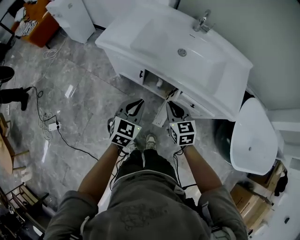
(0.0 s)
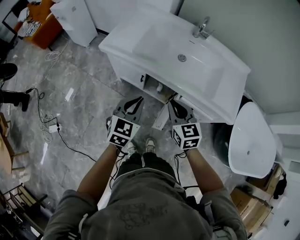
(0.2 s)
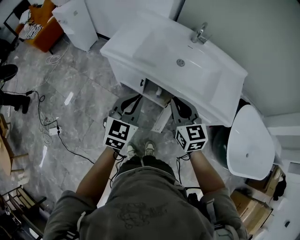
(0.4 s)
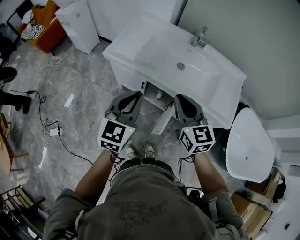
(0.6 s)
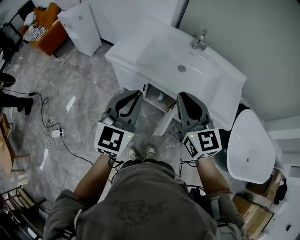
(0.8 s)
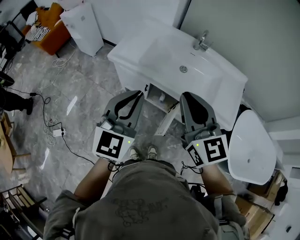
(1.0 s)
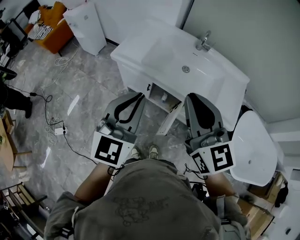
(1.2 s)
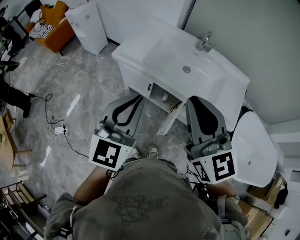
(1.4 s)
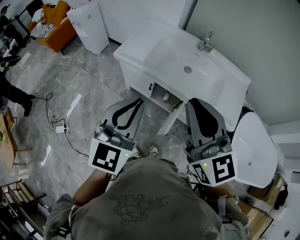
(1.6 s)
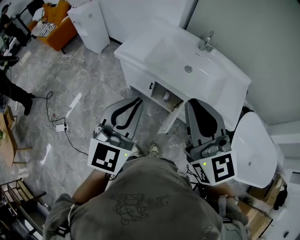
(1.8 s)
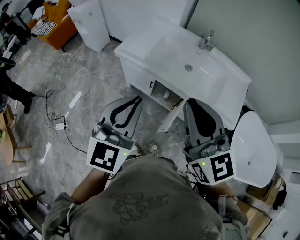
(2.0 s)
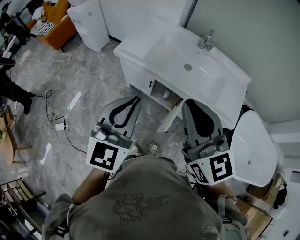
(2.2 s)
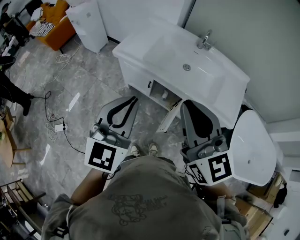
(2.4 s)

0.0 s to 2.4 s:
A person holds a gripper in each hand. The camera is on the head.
0.0 to 1.2 s: The two grippers go some 30 cm upward. The right gripper angles its fingers upward, by approximately 30 degrees; the left gripper rotates some 30 degrees.
1.2 to 2.4 s: The grippers make only small movements.

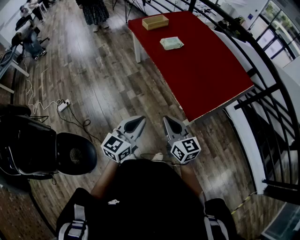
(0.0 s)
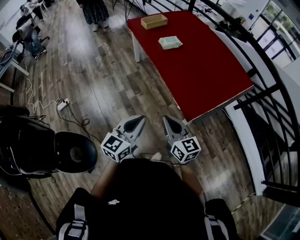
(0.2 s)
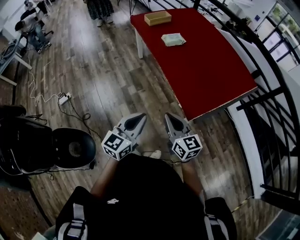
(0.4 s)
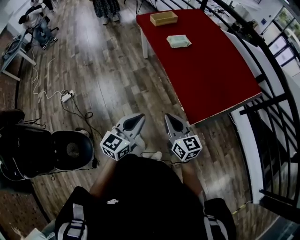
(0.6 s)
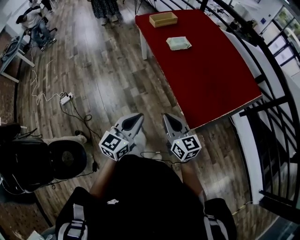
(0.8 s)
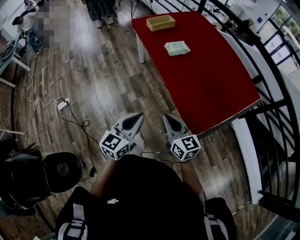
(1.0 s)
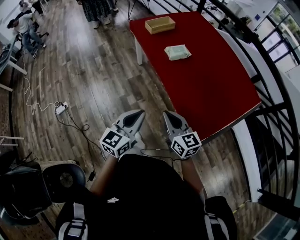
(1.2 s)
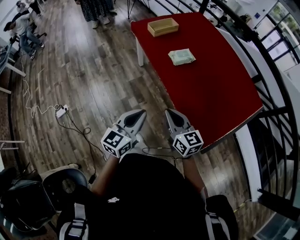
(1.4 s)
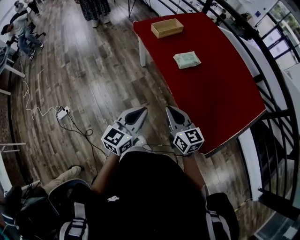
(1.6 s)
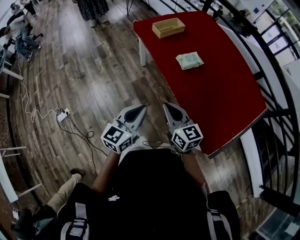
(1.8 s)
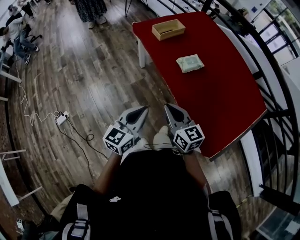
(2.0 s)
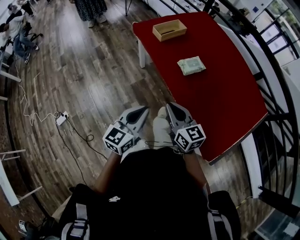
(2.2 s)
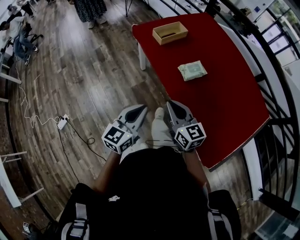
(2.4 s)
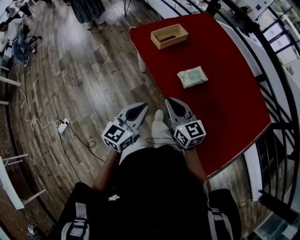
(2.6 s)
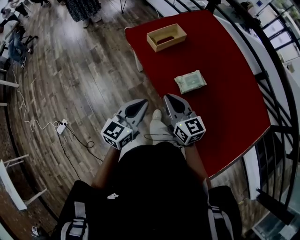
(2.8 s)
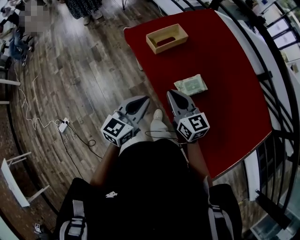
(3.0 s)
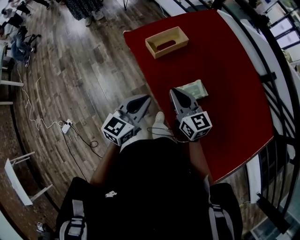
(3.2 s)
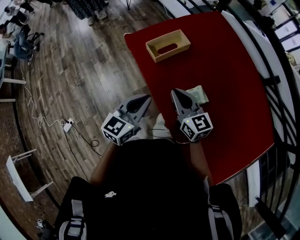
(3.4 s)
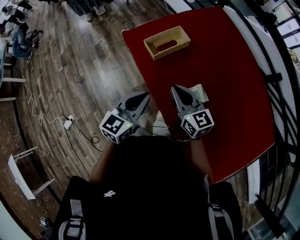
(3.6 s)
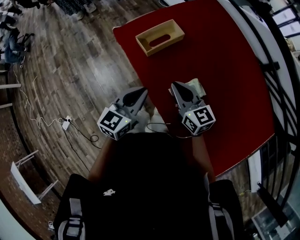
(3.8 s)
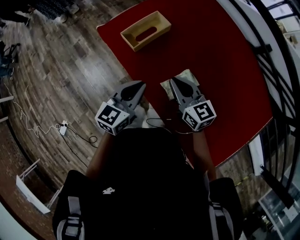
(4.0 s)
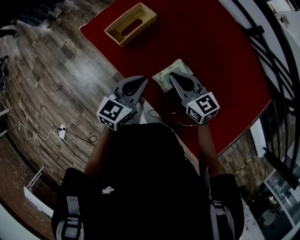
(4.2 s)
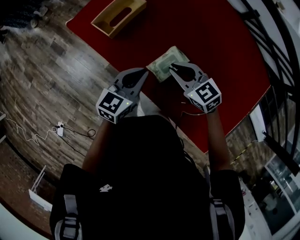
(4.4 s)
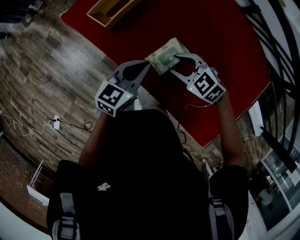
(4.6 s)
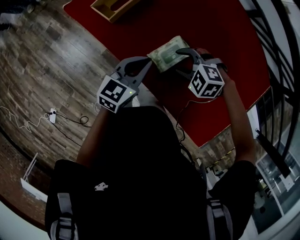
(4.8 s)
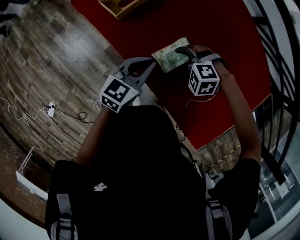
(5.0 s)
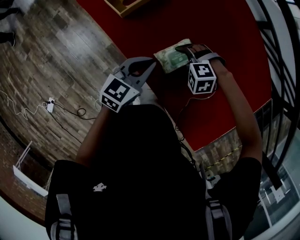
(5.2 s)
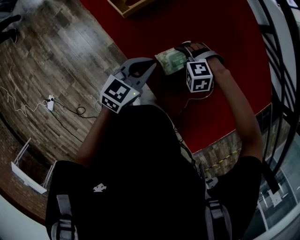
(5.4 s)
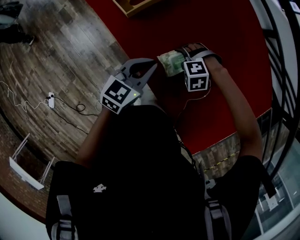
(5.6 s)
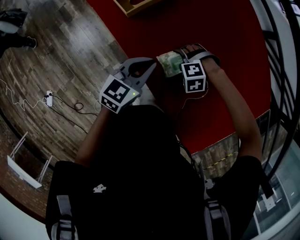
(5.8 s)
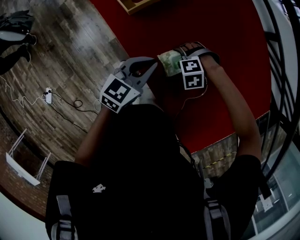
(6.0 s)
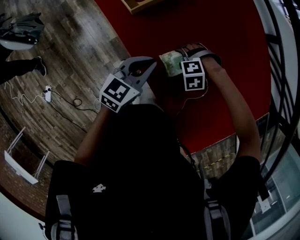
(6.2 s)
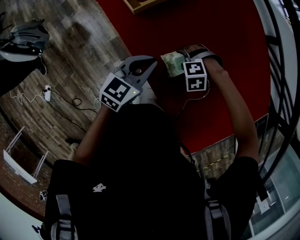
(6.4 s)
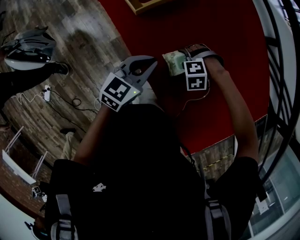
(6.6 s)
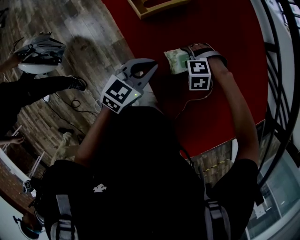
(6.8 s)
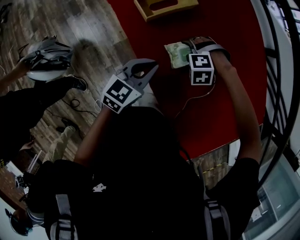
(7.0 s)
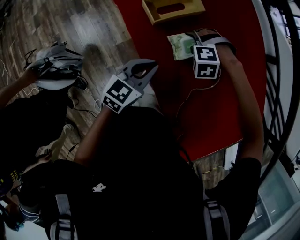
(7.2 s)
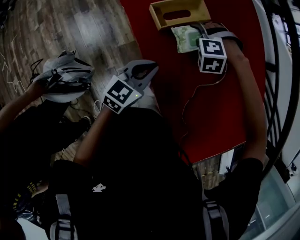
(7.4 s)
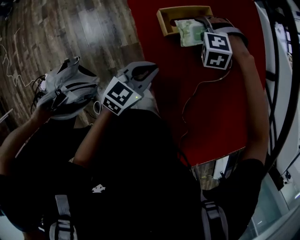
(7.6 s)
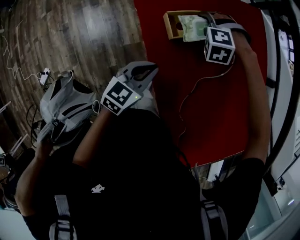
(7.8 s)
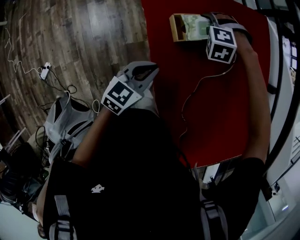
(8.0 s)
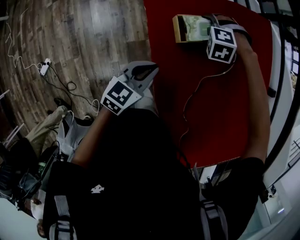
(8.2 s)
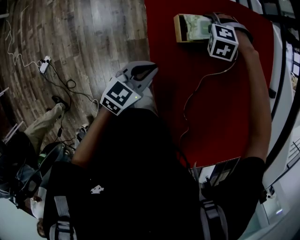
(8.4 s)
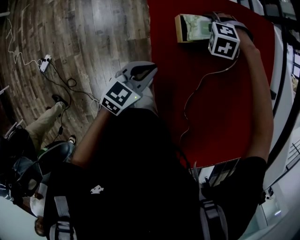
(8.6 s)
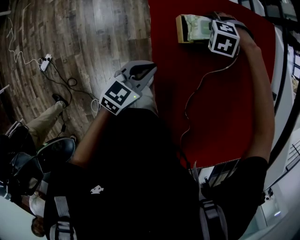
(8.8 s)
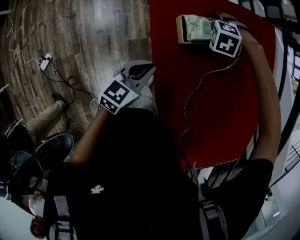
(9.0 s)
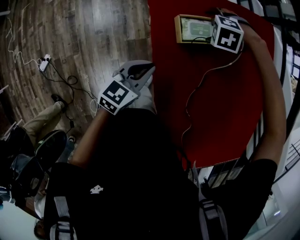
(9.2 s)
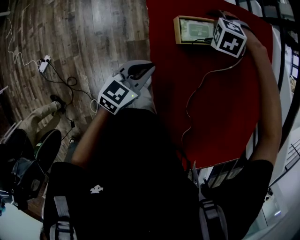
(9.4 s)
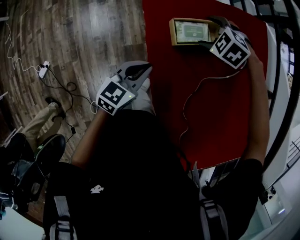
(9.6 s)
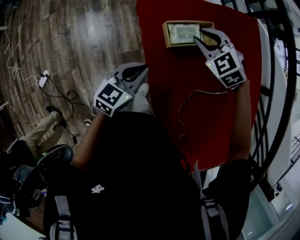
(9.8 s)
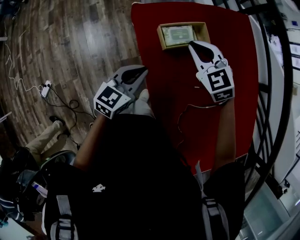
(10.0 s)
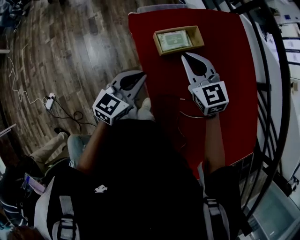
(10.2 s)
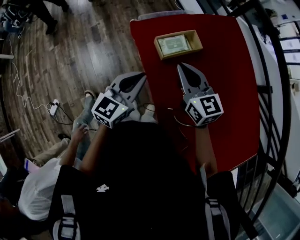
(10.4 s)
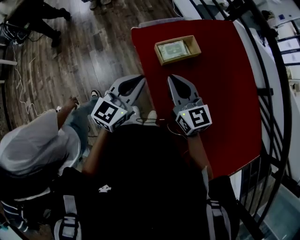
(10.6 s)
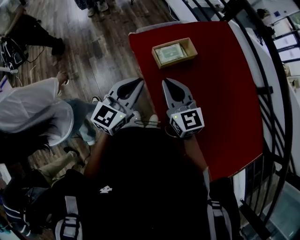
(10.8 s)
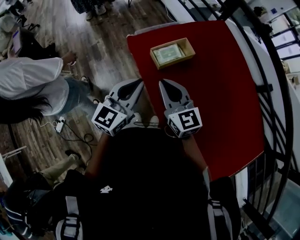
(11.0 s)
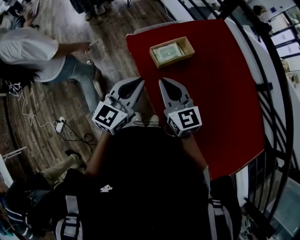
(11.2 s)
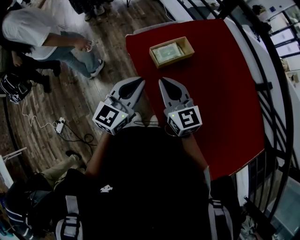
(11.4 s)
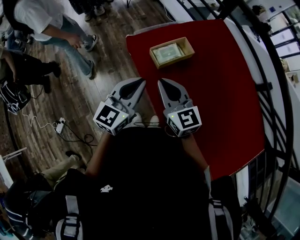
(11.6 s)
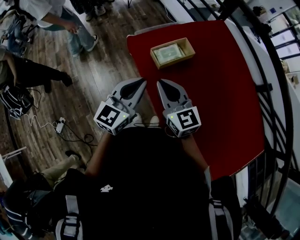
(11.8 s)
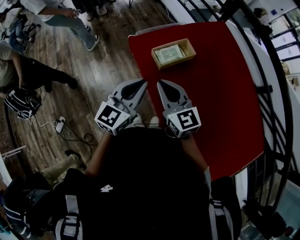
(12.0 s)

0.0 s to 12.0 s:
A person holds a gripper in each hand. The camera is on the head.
0.0 to 1.6 s: The two grippers go some 30 cm forward.
1.6 to 3.0 s: The grippers both shift forward by roughly 35 cm.
3.0 to 4.4 s: The left gripper heads forward, to the right and downward, covering approximately 20 cm, and swivels roughly 20 degrees. The right gripper is displaced to the right, forward and downward by roughly 20 cm, and changes its angle by about 30 degrees.
4.4 to 6.0 s: The right gripper shifts approximately 15 cm downward, tips its fingers downward by some 50 degrees, and opens.
6.0 to 7.6 s: The right gripper ends up about 30 cm from where it was, and swivels roughly 20 degrees. Meanwhile the left gripper moves some 15 cm.
7.6 to 9.0 s: The right gripper shifts by roughly 10 cm; the left gripper moves some 5 cm.
9.0 to 10.4 s: The right gripper is displaced upward by approximately 20 cm, tips its fingers upward by approximately 70 degrees, and closes; the left gripper is displaced upward by some 15 cm.
10.4 to 12.0 s: The left gripper changes place by some 5 cm. Meanwhile the right gripper moves backward, about 5 cm.

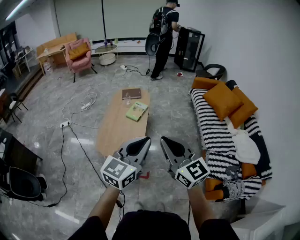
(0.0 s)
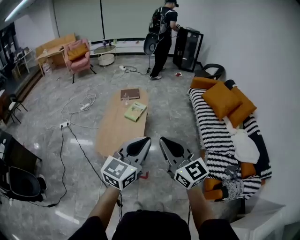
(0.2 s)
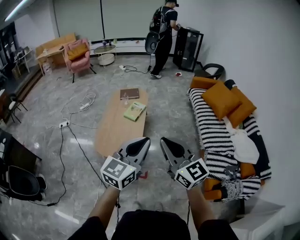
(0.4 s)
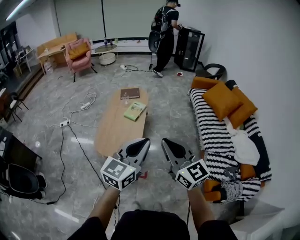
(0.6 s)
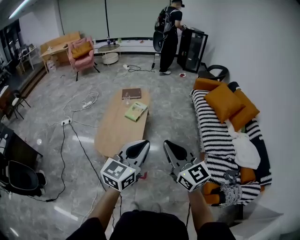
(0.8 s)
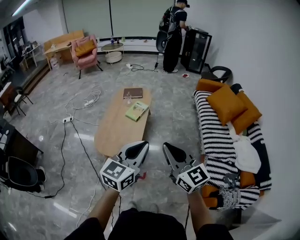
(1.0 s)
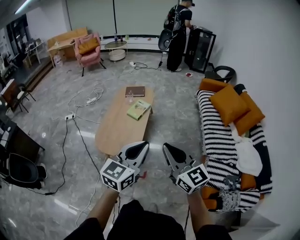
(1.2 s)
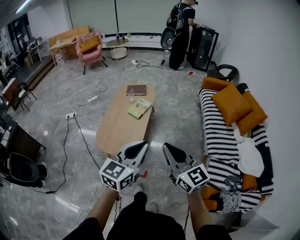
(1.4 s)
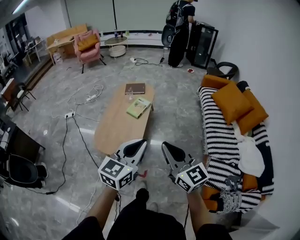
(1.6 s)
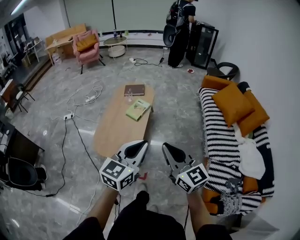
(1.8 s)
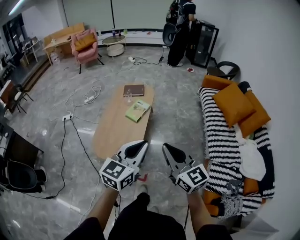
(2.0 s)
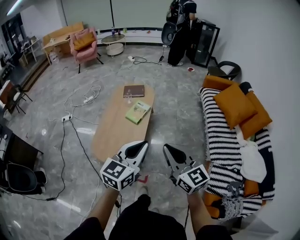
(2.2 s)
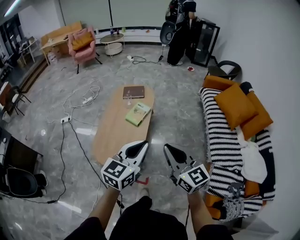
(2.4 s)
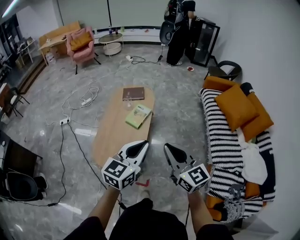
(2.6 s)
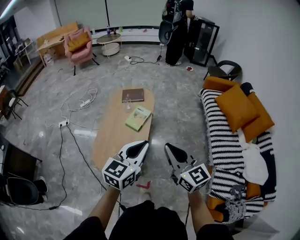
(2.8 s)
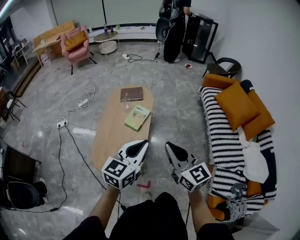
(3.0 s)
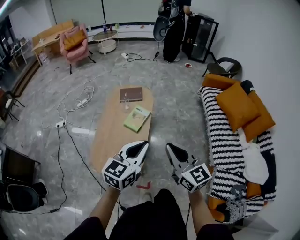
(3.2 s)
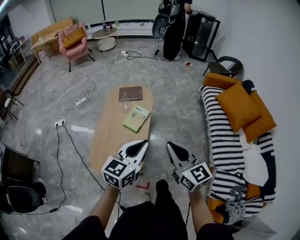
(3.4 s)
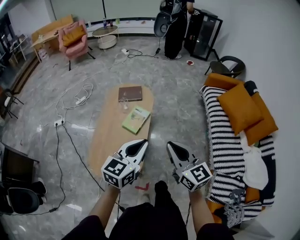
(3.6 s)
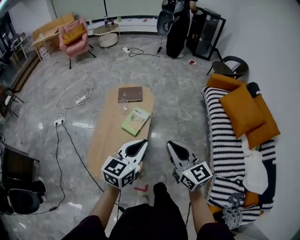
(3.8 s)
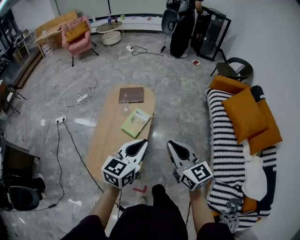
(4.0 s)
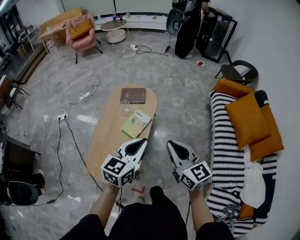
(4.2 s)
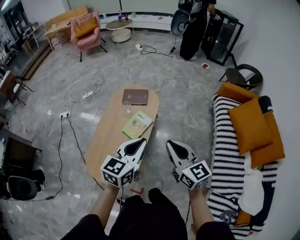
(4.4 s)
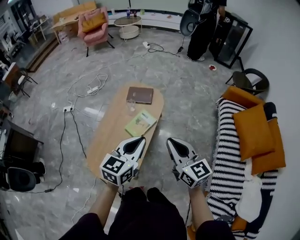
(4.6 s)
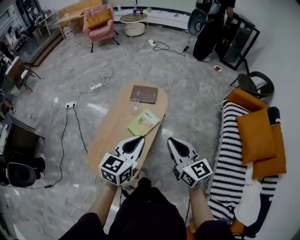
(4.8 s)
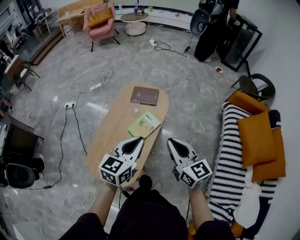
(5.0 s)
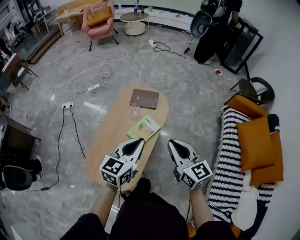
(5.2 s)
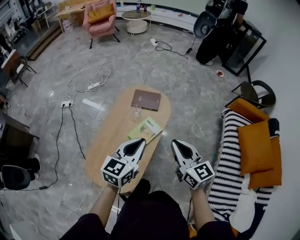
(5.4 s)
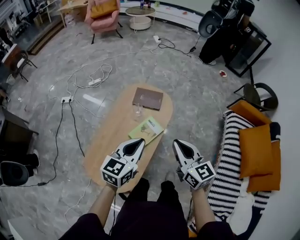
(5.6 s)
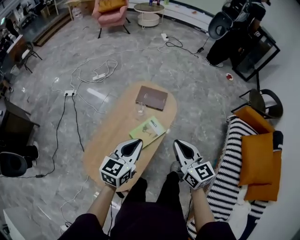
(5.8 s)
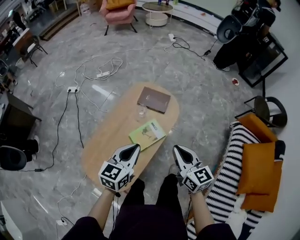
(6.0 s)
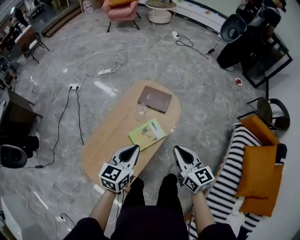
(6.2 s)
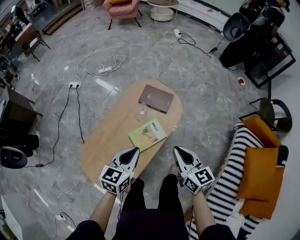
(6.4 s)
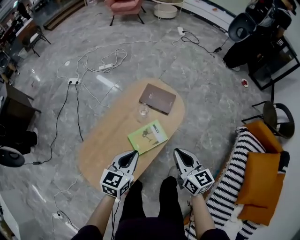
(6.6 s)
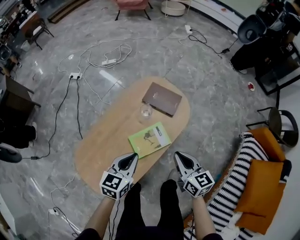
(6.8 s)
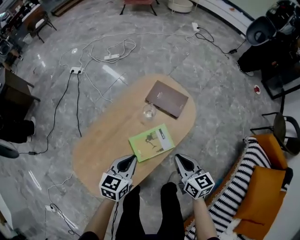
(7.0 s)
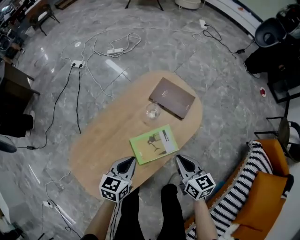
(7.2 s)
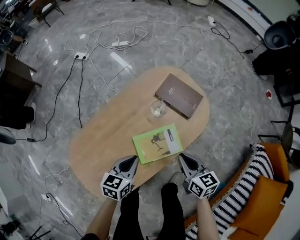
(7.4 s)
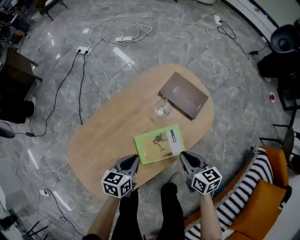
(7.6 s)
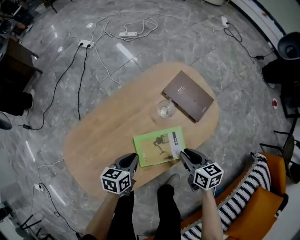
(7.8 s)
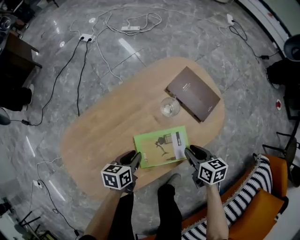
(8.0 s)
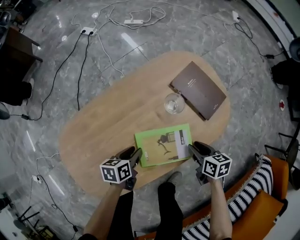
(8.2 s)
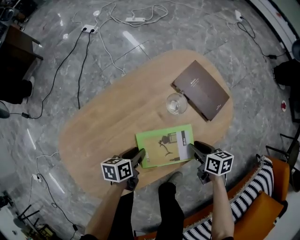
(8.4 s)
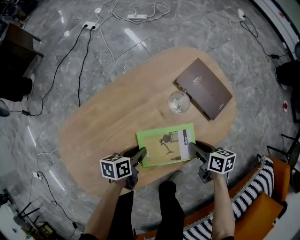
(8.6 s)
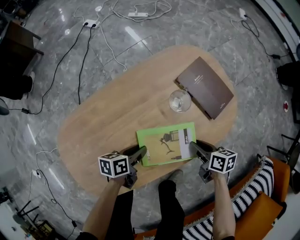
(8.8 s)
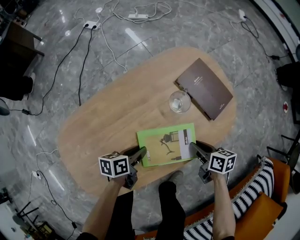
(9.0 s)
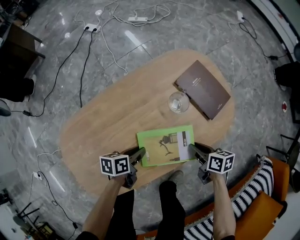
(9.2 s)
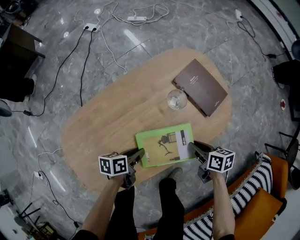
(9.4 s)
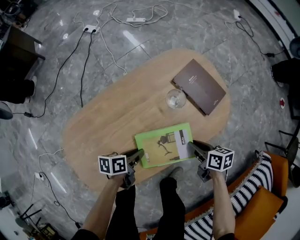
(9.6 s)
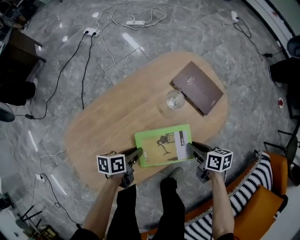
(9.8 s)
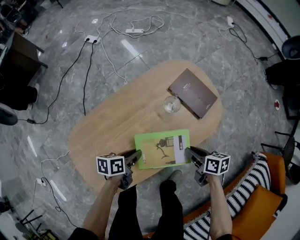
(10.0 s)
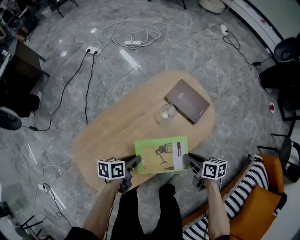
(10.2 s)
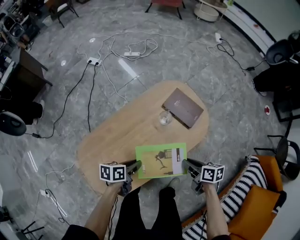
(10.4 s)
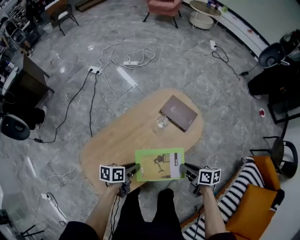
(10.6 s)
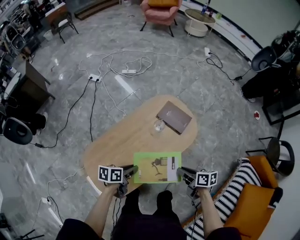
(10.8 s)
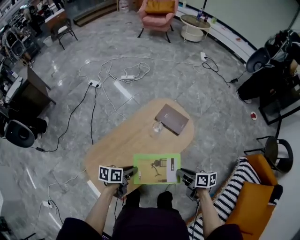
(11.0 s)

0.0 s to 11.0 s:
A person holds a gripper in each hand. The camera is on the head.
0.0 to 1.6 s: Both grippers move to the right, forward and downward, approximately 15 cm.
1.6 to 3.2 s: The grippers both shift forward by some 25 cm.
3.2 to 4.8 s: The grippers both shift forward by about 25 cm.
4.8 to 6.2 s: Both grippers move forward and downward, about 20 cm.
6.2 to 7.8 s: The right gripper travels downward and forward by roughly 40 cm, and rotates about 40 degrees; the left gripper travels downward by roughly 40 cm, and rotates some 40 degrees.
7.8 to 9.4 s: The grippers both shift downward by about 10 cm. The left gripper swivels some 30 degrees.
9.4 to 11.0 s: The right gripper moves upward and backward, roughly 35 cm. Meanwhile the left gripper heads upward, covering roughly 35 cm.
